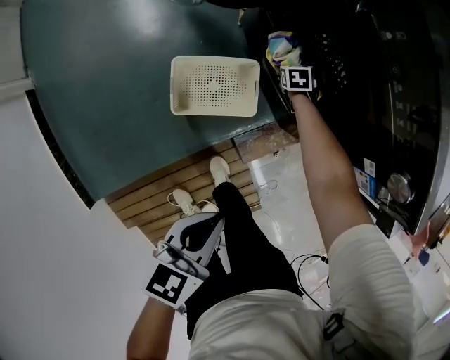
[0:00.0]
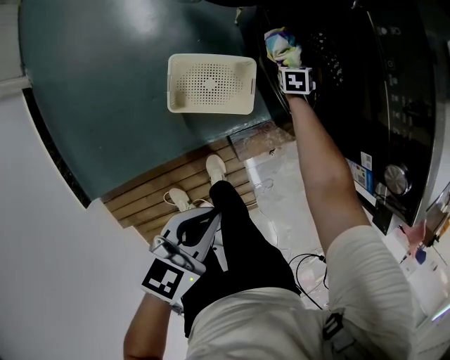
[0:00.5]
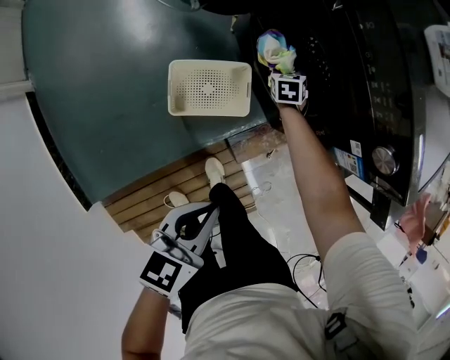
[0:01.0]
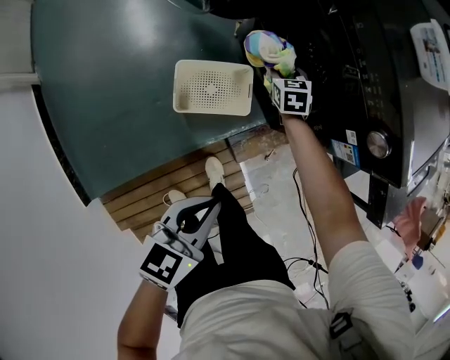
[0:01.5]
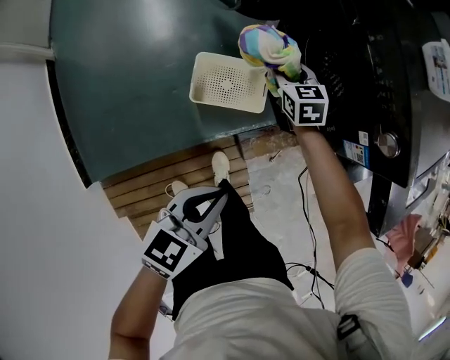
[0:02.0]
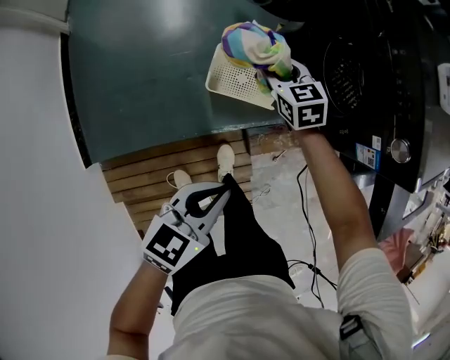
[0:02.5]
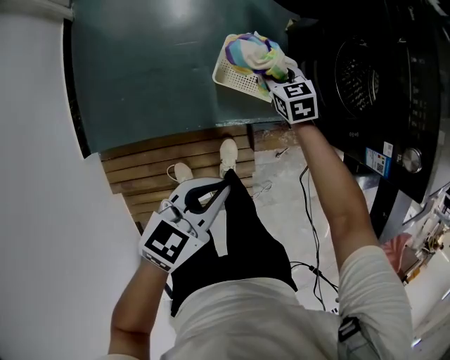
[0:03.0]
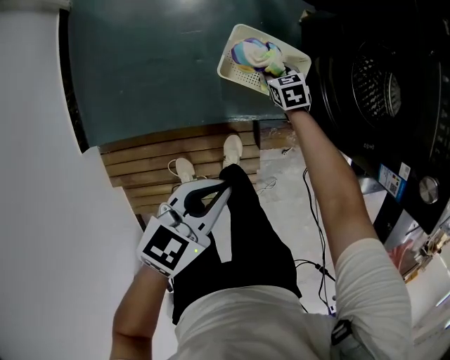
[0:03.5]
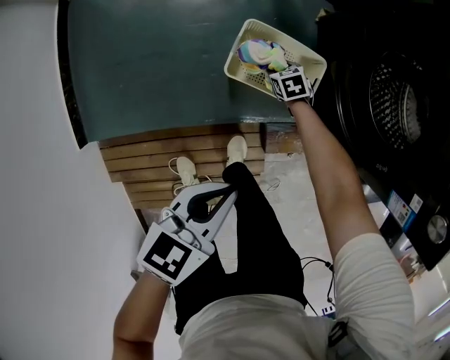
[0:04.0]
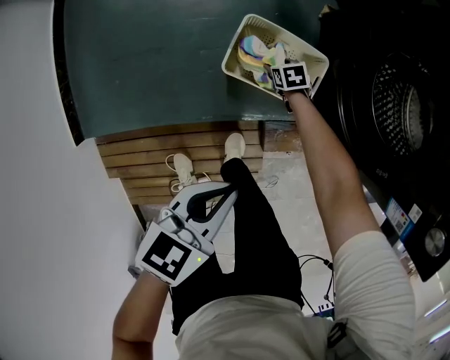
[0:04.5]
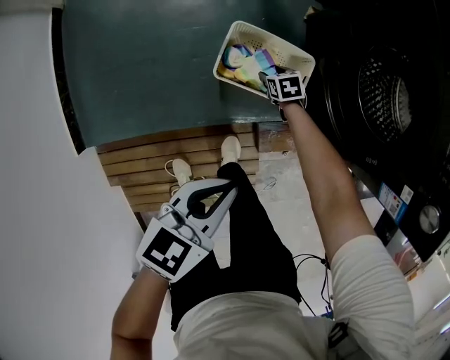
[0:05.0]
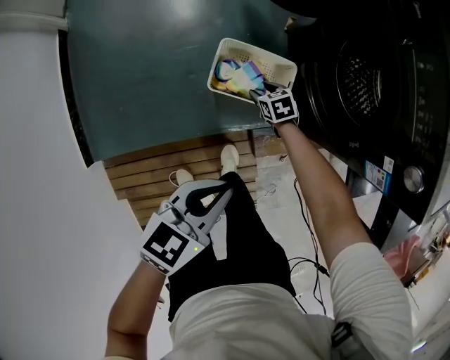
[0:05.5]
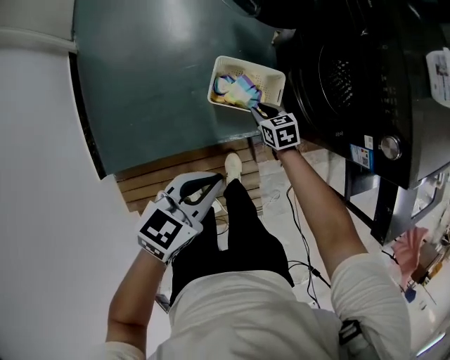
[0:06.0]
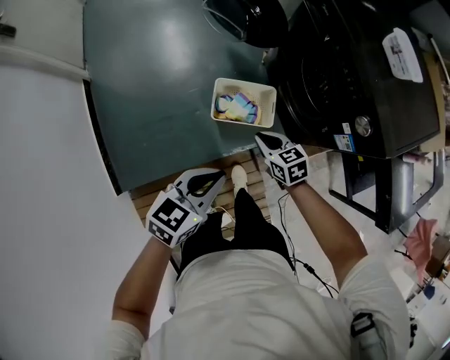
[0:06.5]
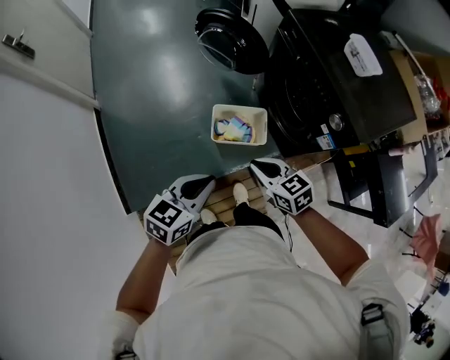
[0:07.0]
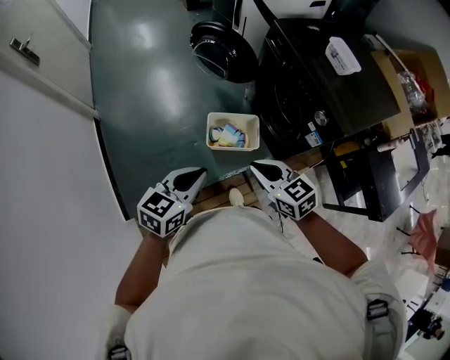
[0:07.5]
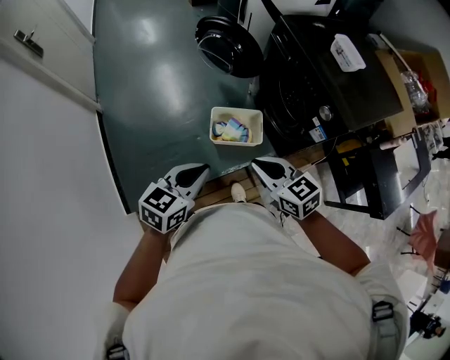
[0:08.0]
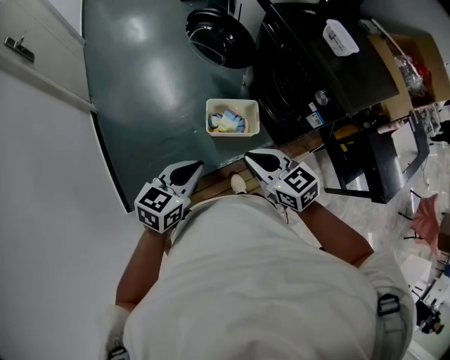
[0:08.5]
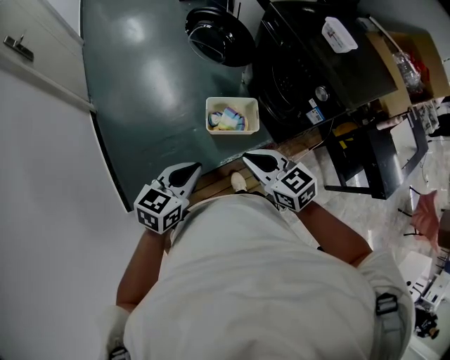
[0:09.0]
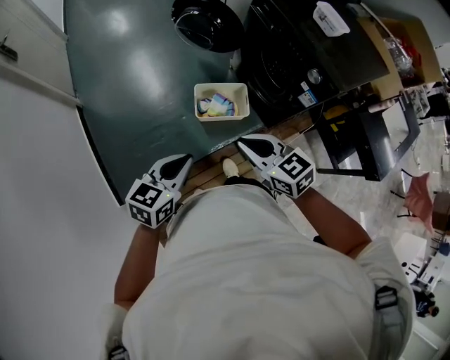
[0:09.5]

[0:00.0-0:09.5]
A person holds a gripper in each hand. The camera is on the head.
0:00.0 to 0:02.0: The right gripper goes roughly 35 cm upward, backward and to the left, turns by roughly 30 degrees, and closes its fingers, while the left gripper is displaced backward and upward by about 10 cm.
0:02.0 to 0:04.0: The left gripper moves downward, some 10 cm. The right gripper is displaced downward by roughly 35 cm, and swivels roughly 30 degrees.
0:04.0 to 0:05.5: Both grippers move upward, some 10 cm.
0:05.5 to 0:07.5: The left gripper shifts some 25 cm upward. Meanwhile the right gripper moves upward and backward, roughly 60 cm, tips its fingers upward by about 30 degrees, and closes.
0:07.5 to 0:09.5: The left gripper is displaced backward and to the left by roughly 10 cm. The right gripper shifts about 5 cm to the left and backward.

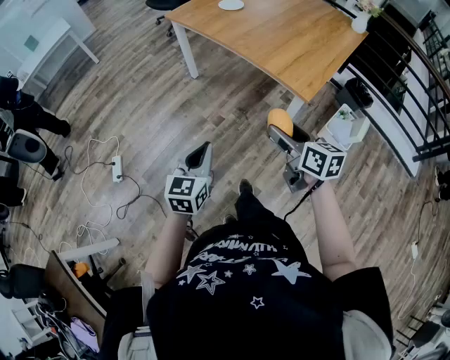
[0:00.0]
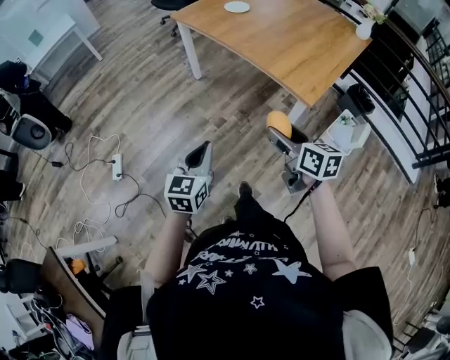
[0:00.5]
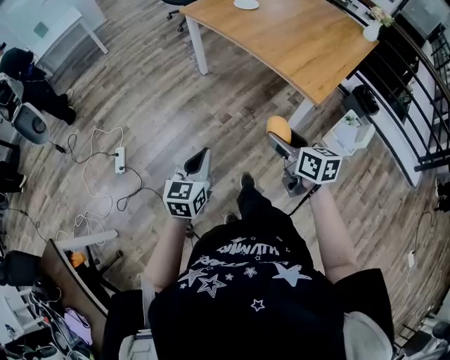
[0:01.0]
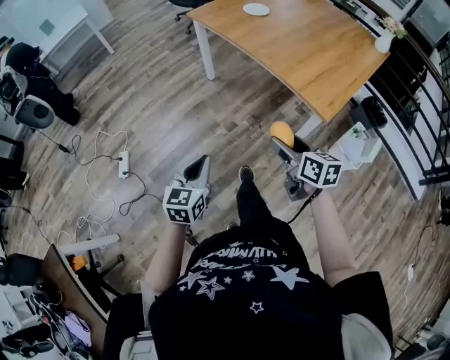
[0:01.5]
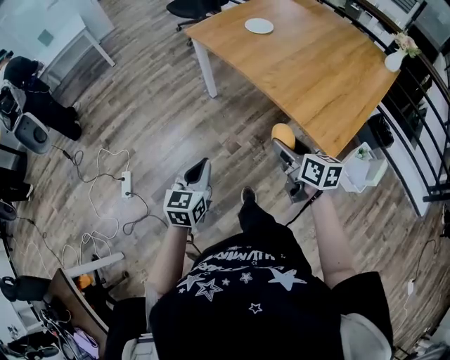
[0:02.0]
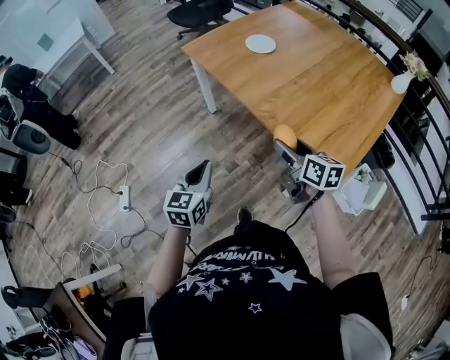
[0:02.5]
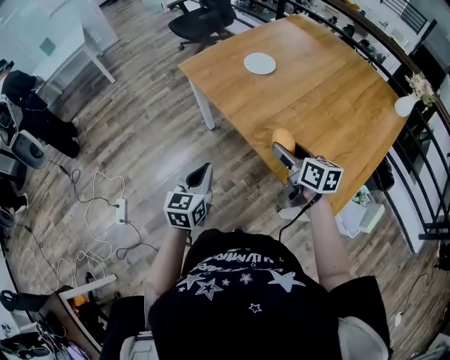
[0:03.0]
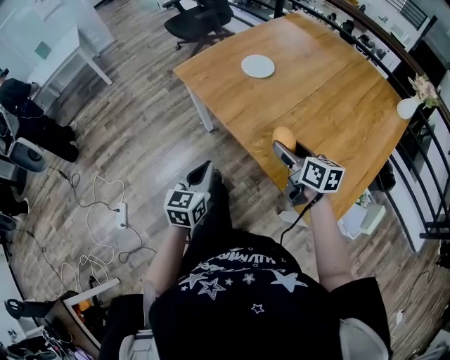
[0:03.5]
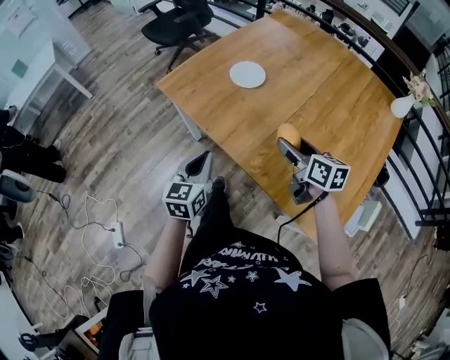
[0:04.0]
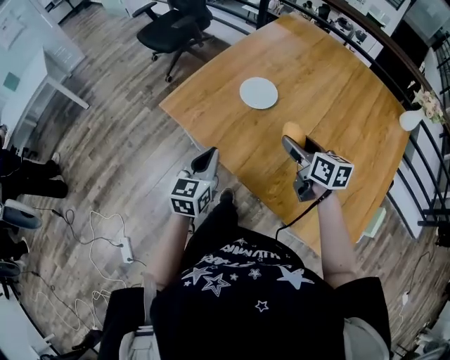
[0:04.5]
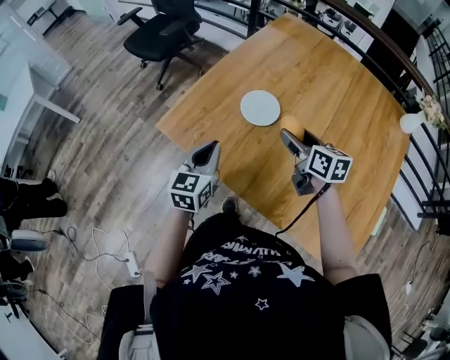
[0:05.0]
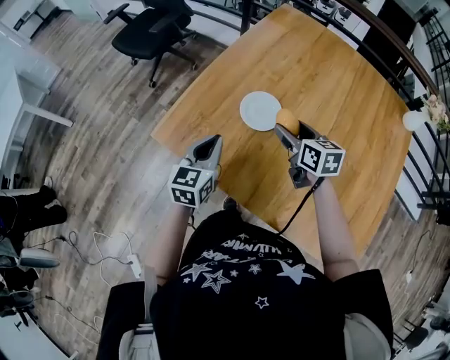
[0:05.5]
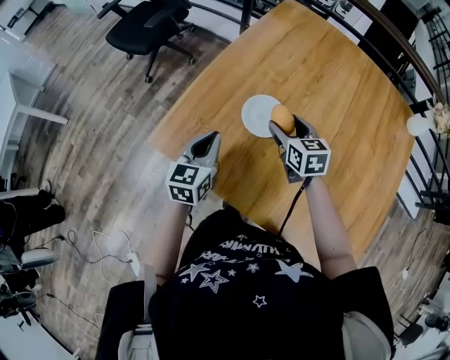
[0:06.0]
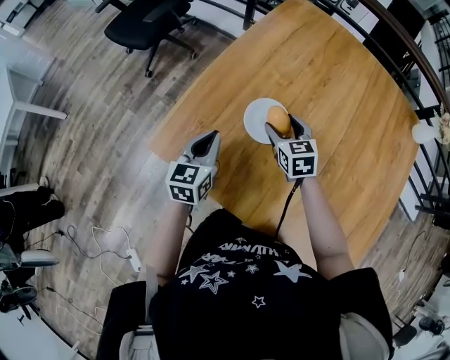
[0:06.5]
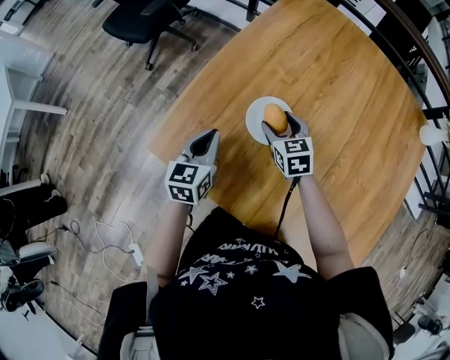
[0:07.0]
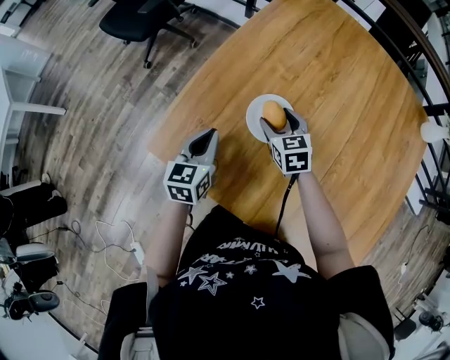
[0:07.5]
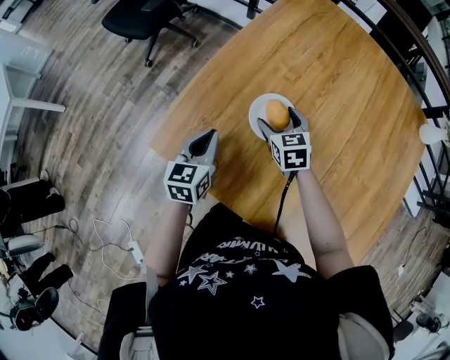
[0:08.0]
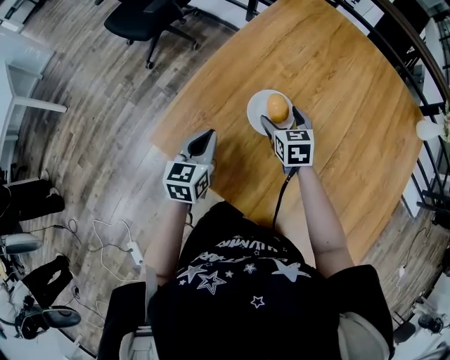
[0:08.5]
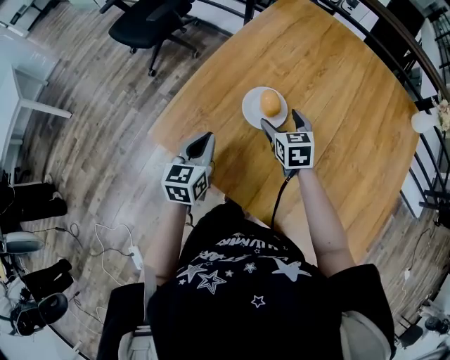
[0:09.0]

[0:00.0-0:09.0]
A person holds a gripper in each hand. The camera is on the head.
0:00.0 to 0:02.0: The grippers both shift forward by about 20 cm.
0:02.0 to 0:04.5: The pair of grippers is taken forward, approximately 50 cm.
0:04.5 to 0:07.0: The left gripper travels forward by some 25 cm. The right gripper heads forward, downward and to the left, covering approximately 30 cm, and turns by roughly 30 degrees.
0:07.0 to 0:09.0: The right gripper ends up roughly 5 cm from where it was. The left gripper moves backward, roughly 5 cm.

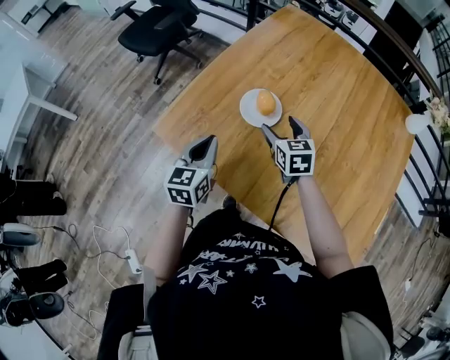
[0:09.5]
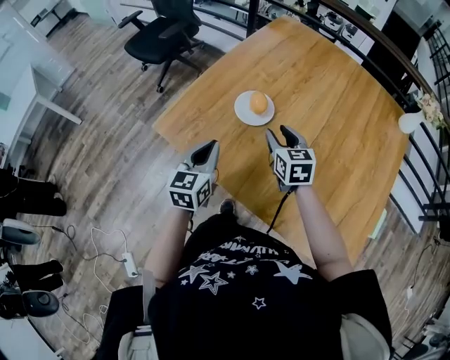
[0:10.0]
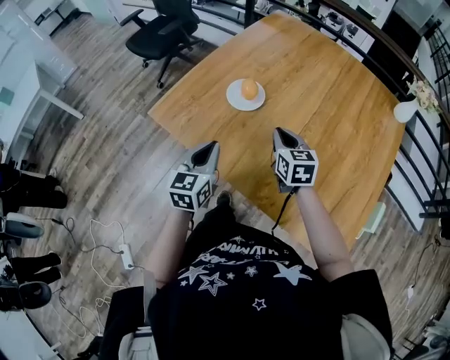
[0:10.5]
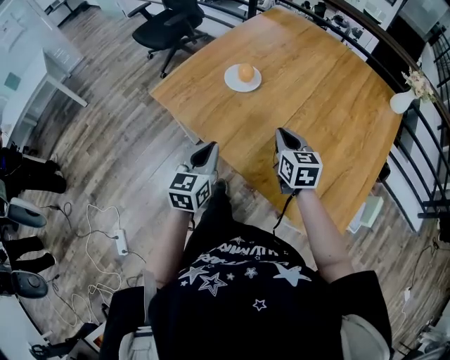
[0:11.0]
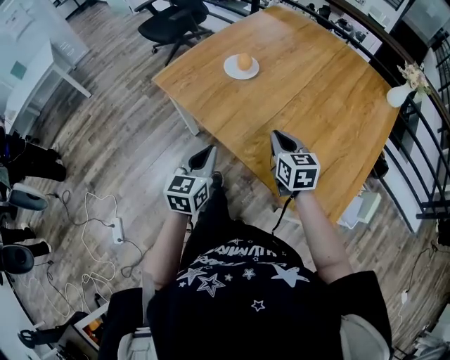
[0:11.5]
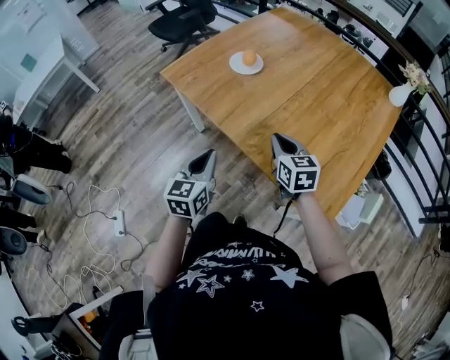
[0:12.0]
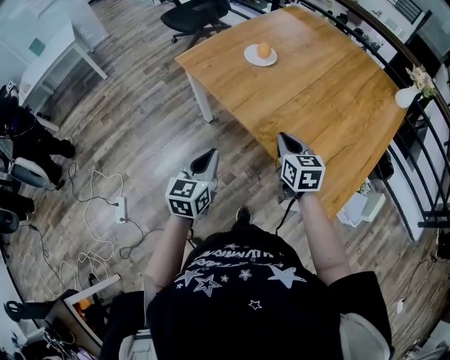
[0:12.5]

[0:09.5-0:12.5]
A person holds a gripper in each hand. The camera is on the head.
0:09.5 to 0:11.0: Both grippers move backward and to the right, about 20 cm. The right gripper closes up.
0:11.0 to 0:12.5: Both grippers travel together backward, some 20 cm.

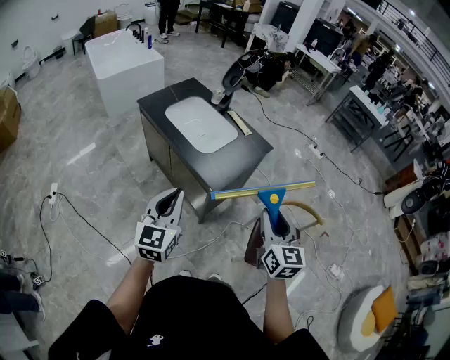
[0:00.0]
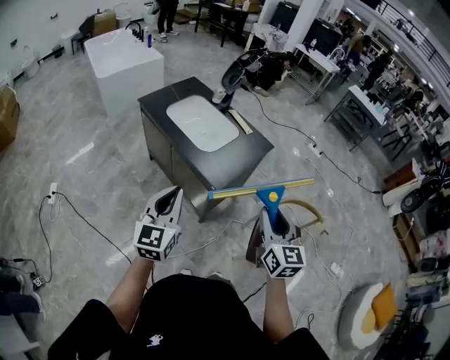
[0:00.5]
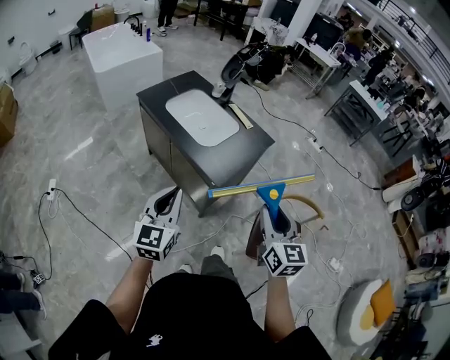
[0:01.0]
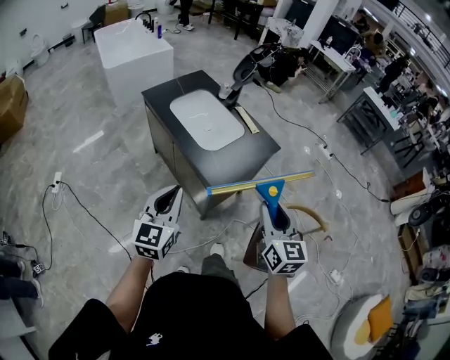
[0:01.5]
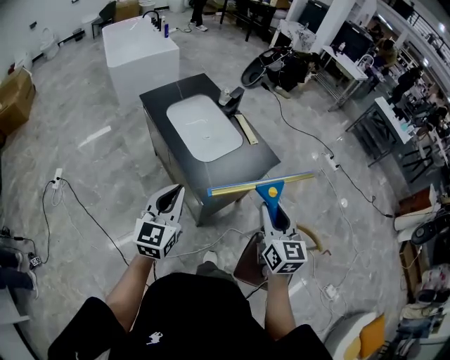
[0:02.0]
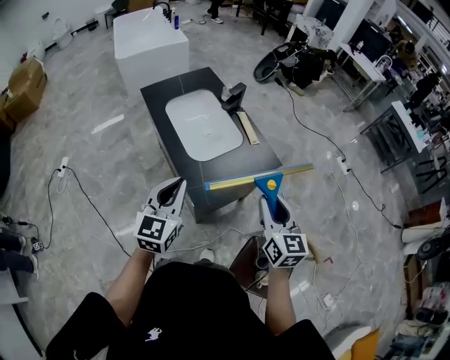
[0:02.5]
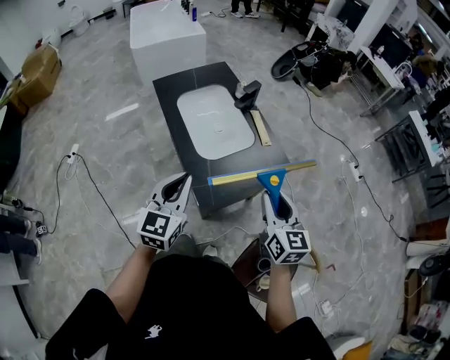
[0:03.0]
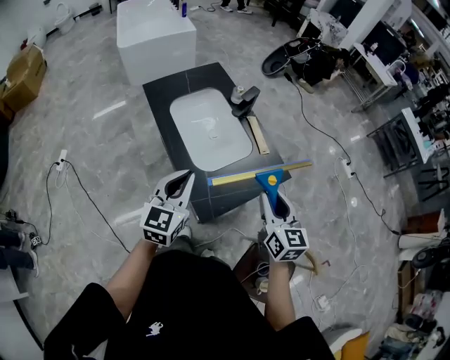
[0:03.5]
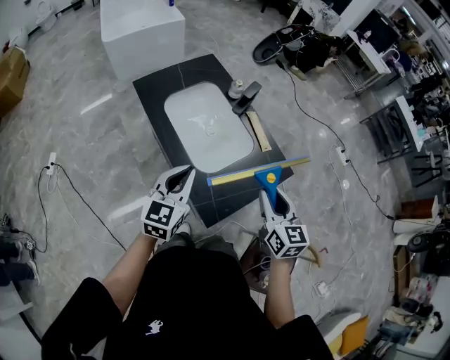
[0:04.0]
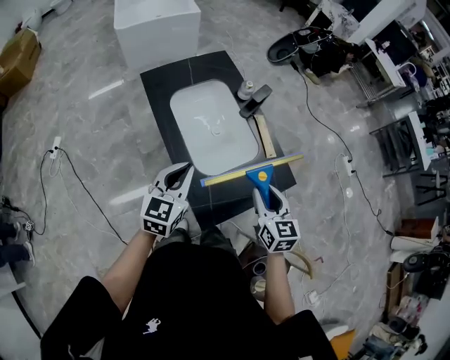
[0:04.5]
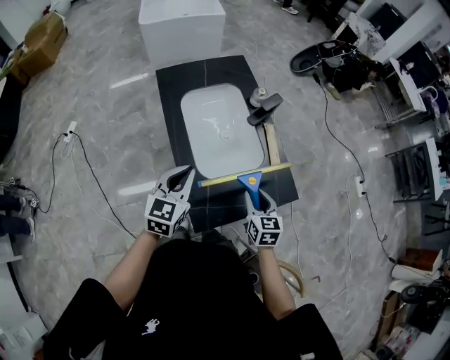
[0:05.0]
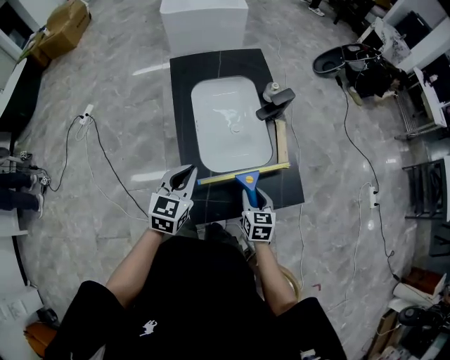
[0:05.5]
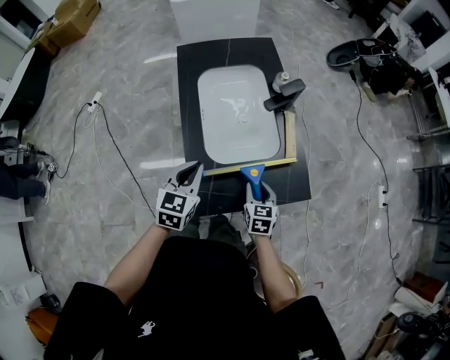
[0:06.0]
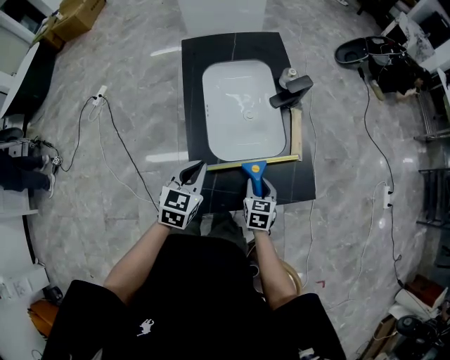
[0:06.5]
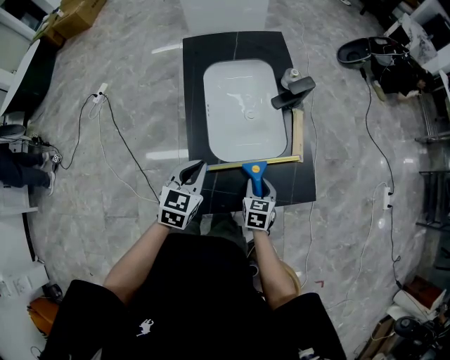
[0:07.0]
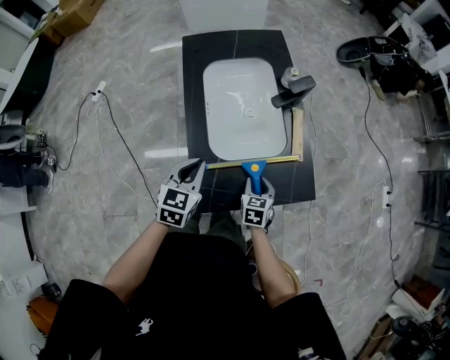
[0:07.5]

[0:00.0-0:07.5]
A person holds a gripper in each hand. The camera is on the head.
0:00.0 to 0:02.0: The left gripper is displaced forward and to the right by approximately 10 cm. Meanwhile the right gripper moves forward, about 15 cm.
0:02.0 to 0:04.0: The two grippers go about 20 cm forward.
0:04.0 to 0:05.5: The right gripper travels downward by approximately 20 cm, and rotates some 30 degrees; the left gripper goes some 5 cm downward, and changes its angle by approximately 20 degrees.
0:05.5 to 0:07.5: The right gripper moves downward, roughly 5 cm.
